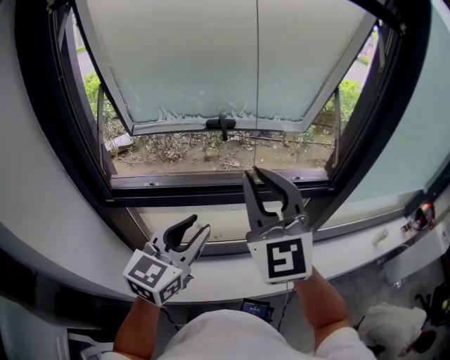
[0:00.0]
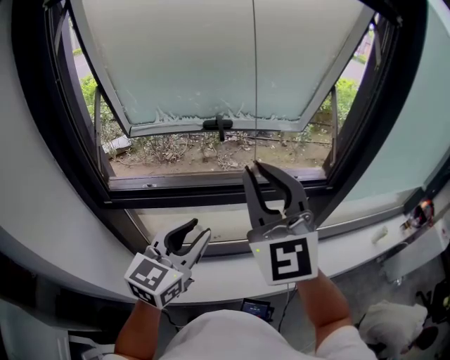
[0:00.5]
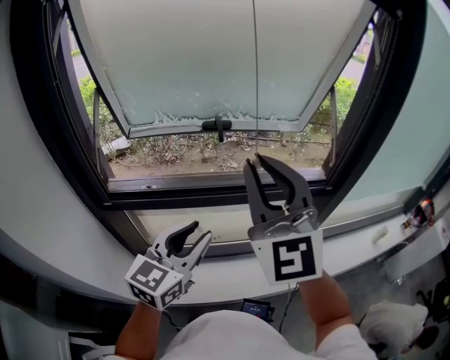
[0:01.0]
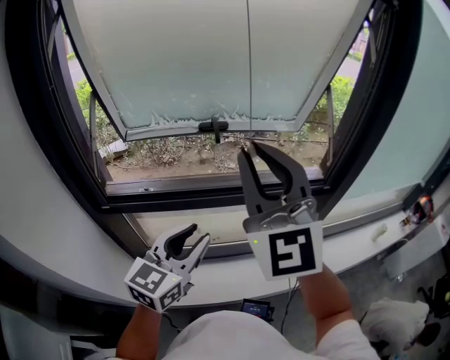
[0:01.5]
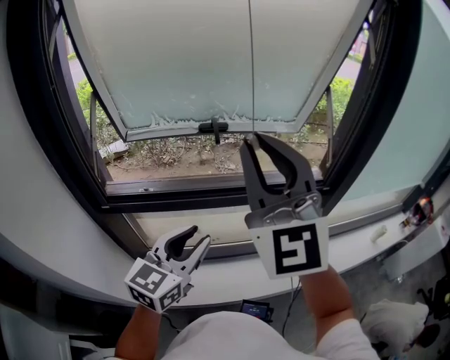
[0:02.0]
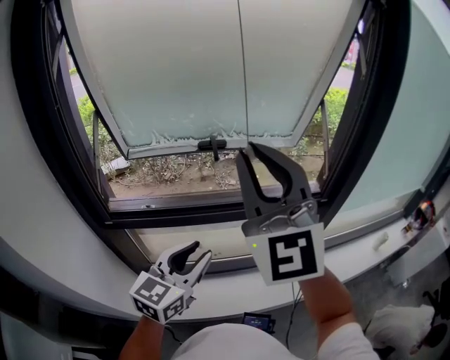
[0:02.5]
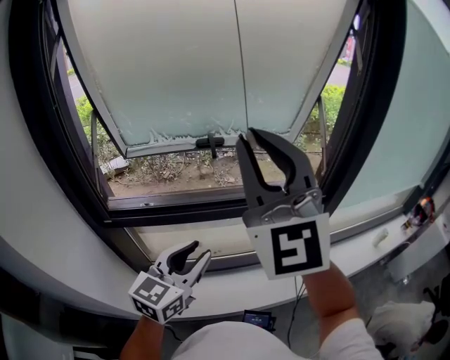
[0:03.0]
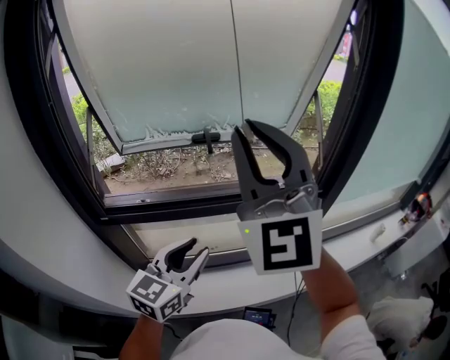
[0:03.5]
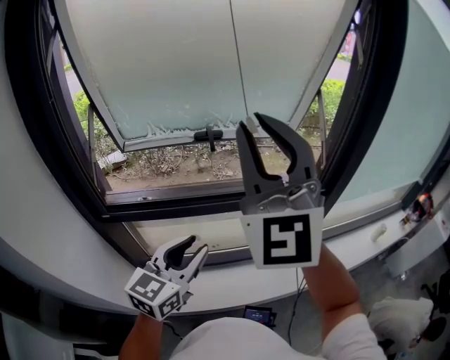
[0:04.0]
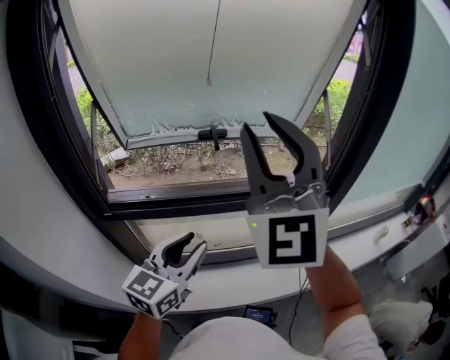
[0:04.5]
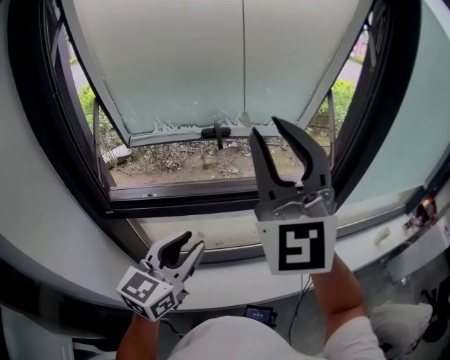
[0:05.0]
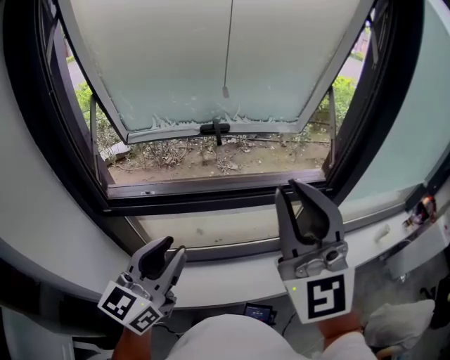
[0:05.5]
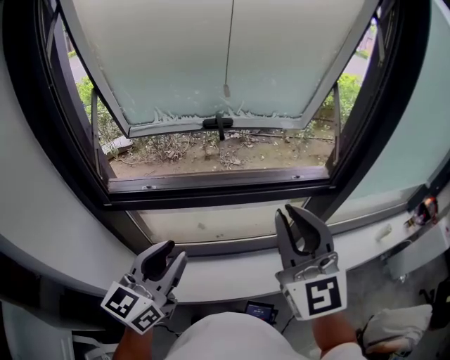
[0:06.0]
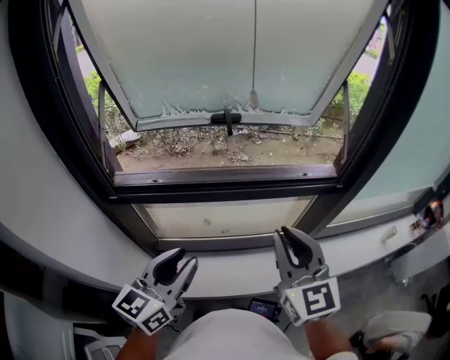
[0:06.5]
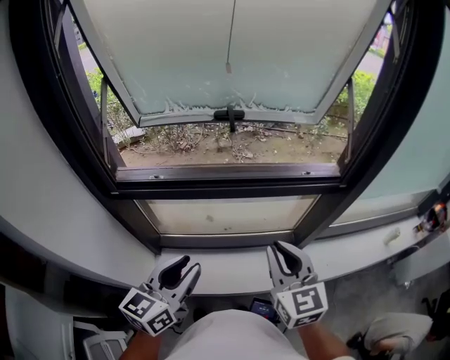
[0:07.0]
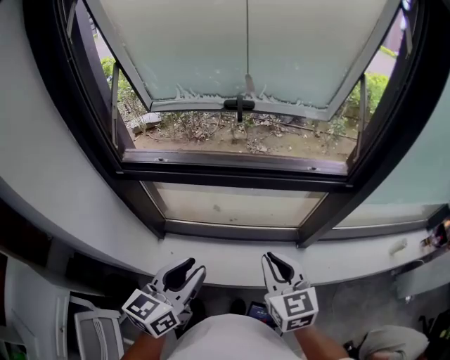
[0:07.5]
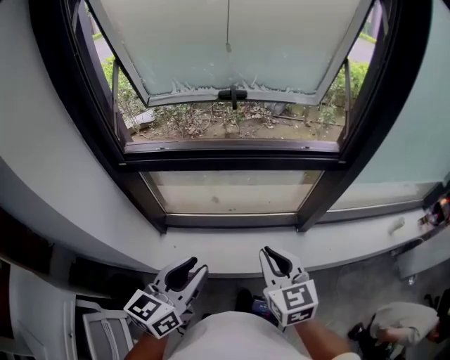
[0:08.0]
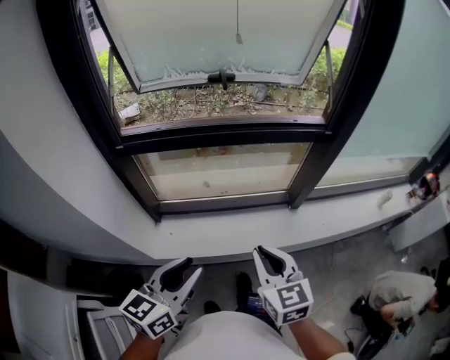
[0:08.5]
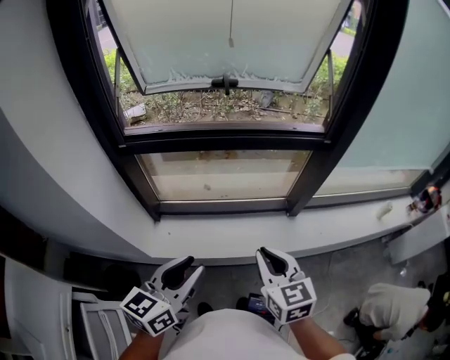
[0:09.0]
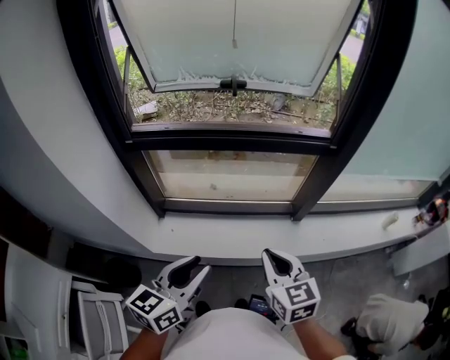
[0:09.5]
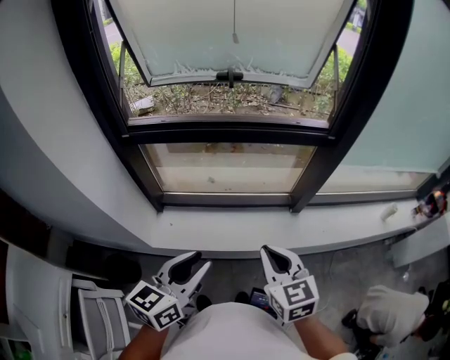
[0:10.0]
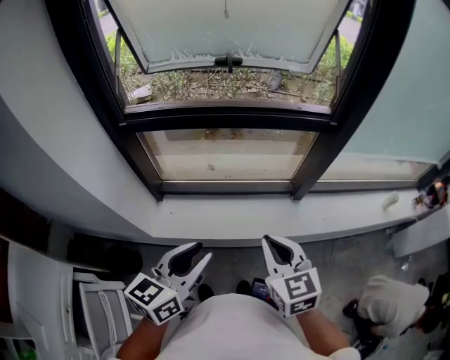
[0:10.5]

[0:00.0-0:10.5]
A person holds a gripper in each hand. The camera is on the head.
0:00.0 to 0:02.0: The right gripper moves upward, roughly 10 cm.
0:02.0 to 0:04.0: There are only small adjustments of the grippers.
0:04.0 to 0:06.5: The right gripper travels downward by roughly 25 cm, and changes its angle by about 40 degrees. Meanwhile the left gripper changes place by some 5 cm.
0:06.5 to 0:08.5: The left gripper travels backward by some 20 cm. The right gripper travels backward and downward by some 25 cm, and turns by roughly 20 degrees.
0:08.5 to 0:10.5: Both grippers travel together to the right, approximately 5 cm.

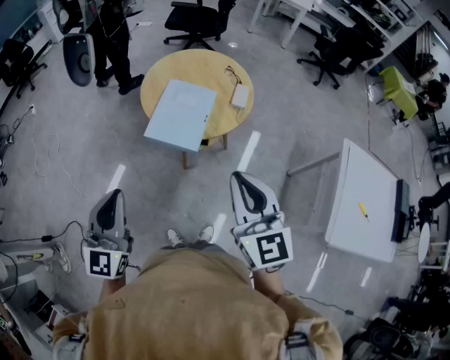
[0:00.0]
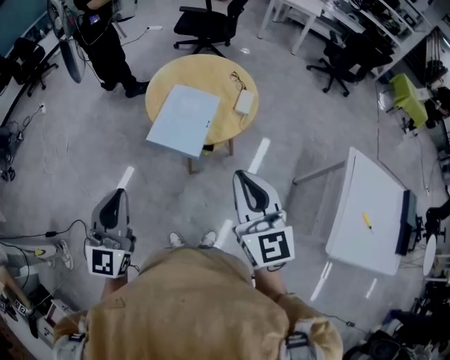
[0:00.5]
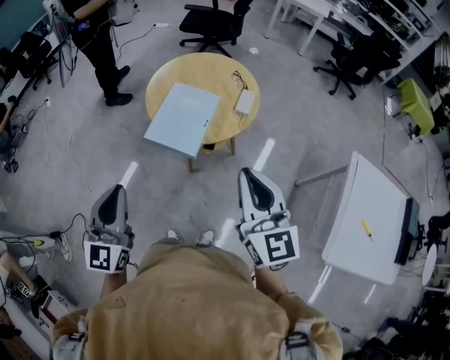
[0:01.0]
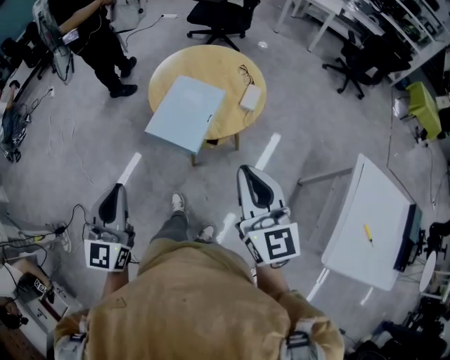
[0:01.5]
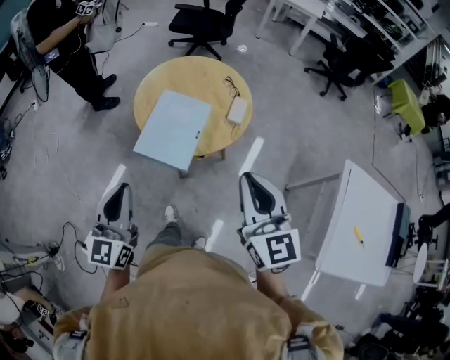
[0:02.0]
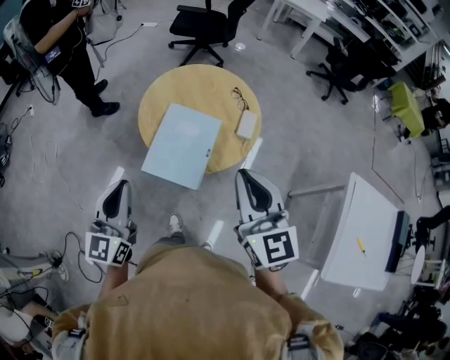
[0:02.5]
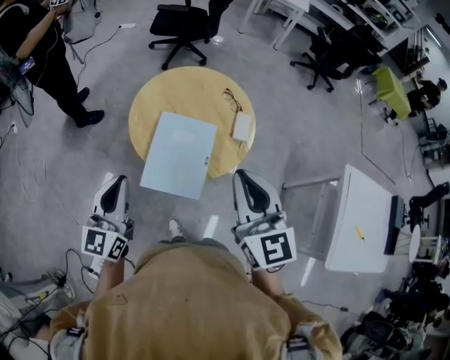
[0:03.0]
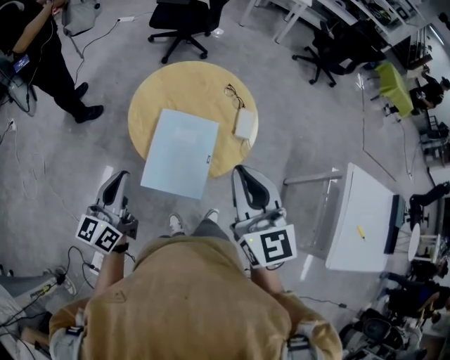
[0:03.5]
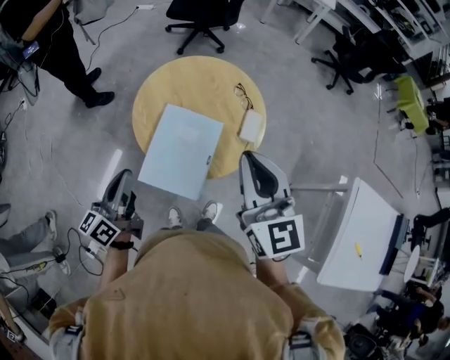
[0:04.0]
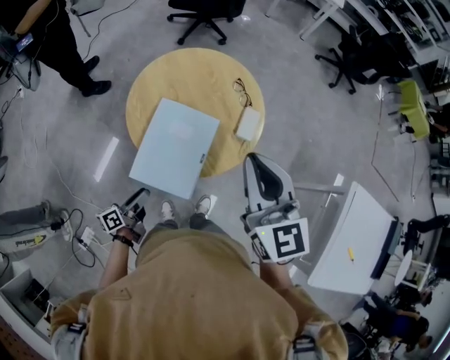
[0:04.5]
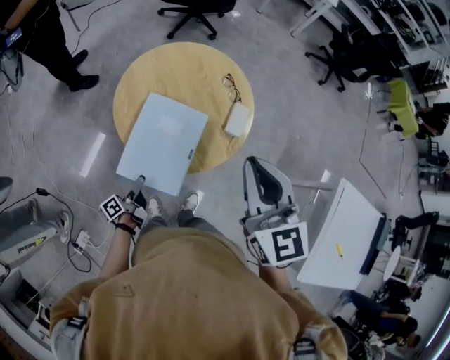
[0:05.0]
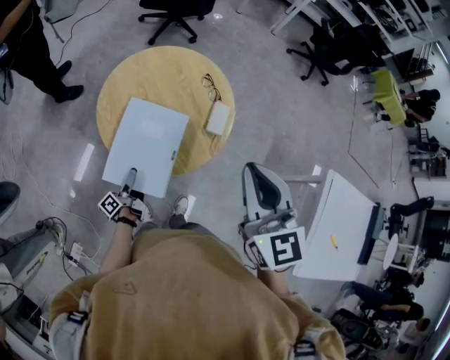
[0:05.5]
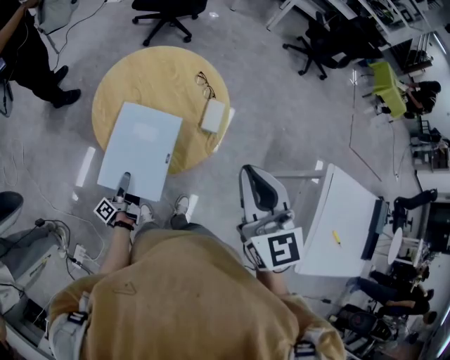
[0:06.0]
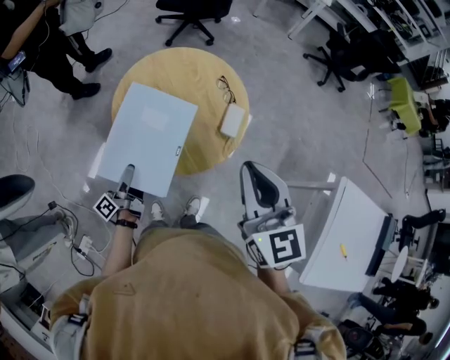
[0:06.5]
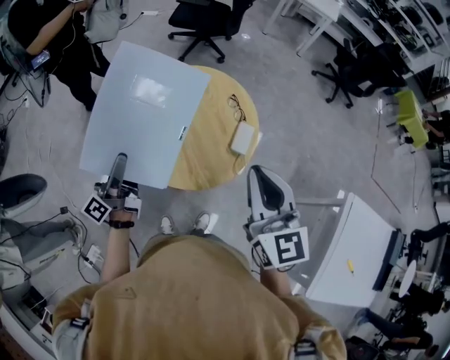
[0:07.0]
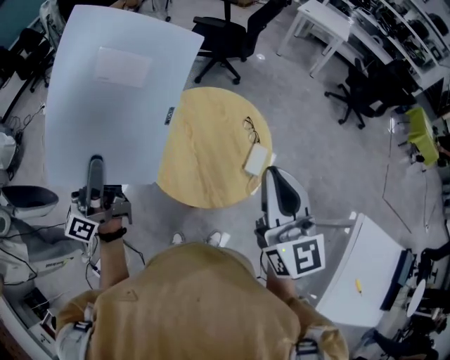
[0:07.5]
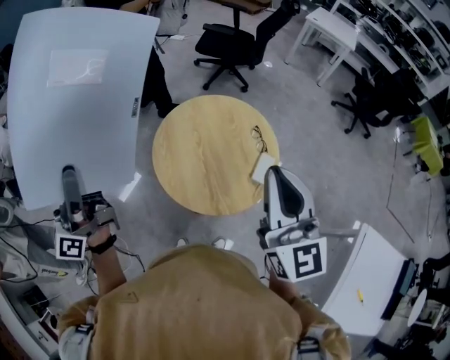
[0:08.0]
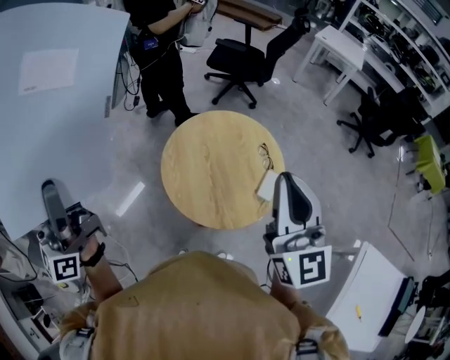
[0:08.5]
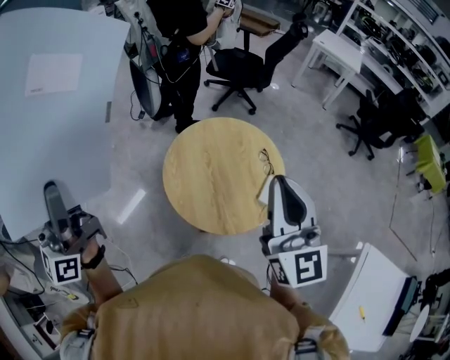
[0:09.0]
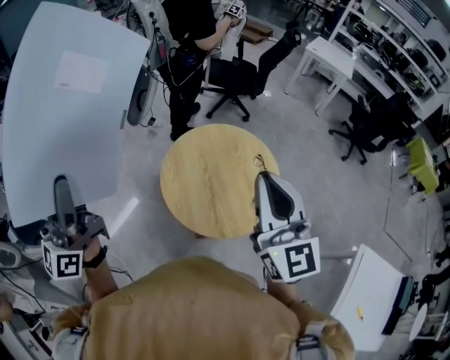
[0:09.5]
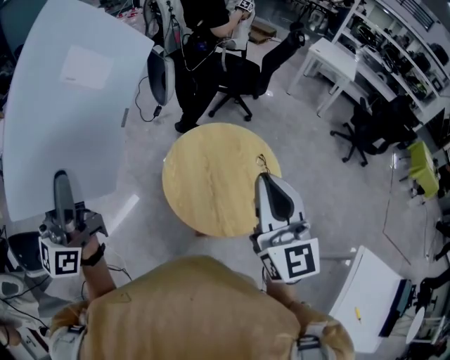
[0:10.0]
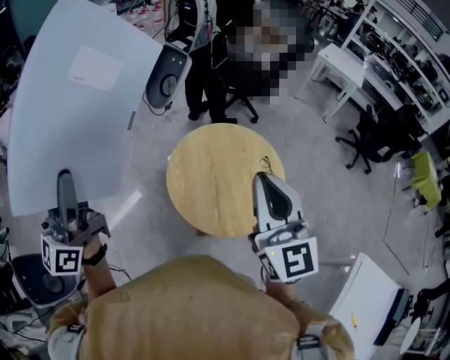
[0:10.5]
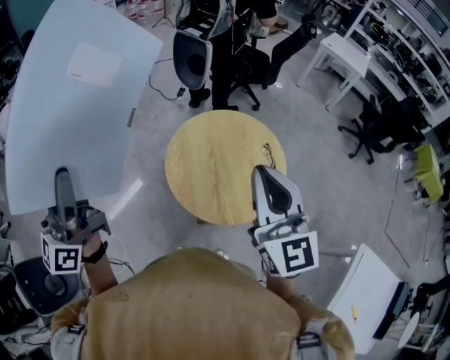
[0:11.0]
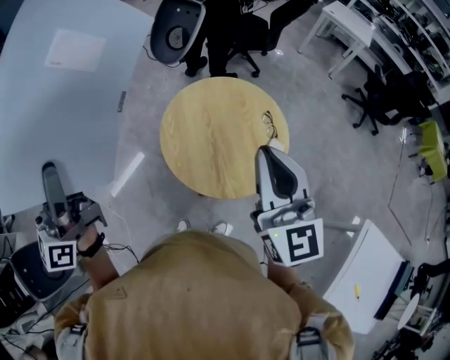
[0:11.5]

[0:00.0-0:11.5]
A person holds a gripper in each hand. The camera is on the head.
0:00.0 to 0:02.0: The right gripper shifts roughly 15 cm to the right and forward; the left gripper goes some 15 cm forward and to the right.
0:02.0 to 0:04.0: Both grippers move forward, some 20 cm. The left gripper rotates some 40 degrees.
0:04.0 to 0:06.0: The right gripper goes roughly 10 cm to the right. The left gripper is displaced downward by about 30 cm, rotates around the line of its fingers by roughly 40 degrees, counterclockwise from behind, and opens its fingers.
0:06.0 to 0:07.5: The right gripper moves upward, forward and to the left, about 10 cm, and changes its angle by approximately 20 degrees. The left gripper heads upward, covering about 50 cm, and tilts its fingers roughly 40 degrees upward.
0:07.5 to 0:09.5: The left gripper is displaced upward, to the left and backward by about 20 cm, and rotates roughly 40 degrees. The right gripper goes about 10 cm to the left and upward.
0:09.5 to 0:11.5: The right gripper goes approximately 5 cm downward.

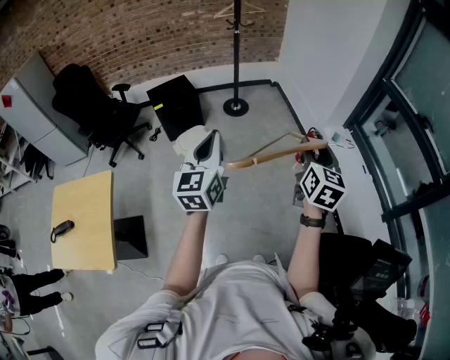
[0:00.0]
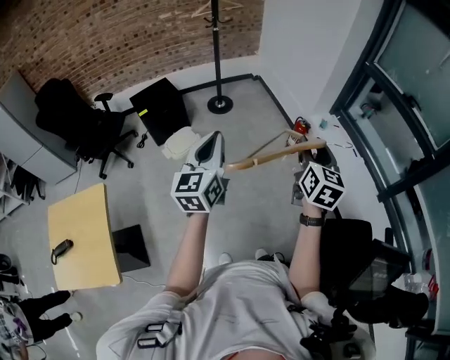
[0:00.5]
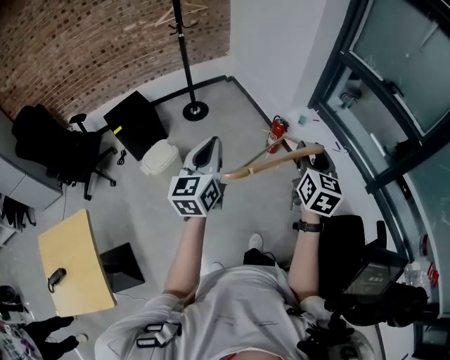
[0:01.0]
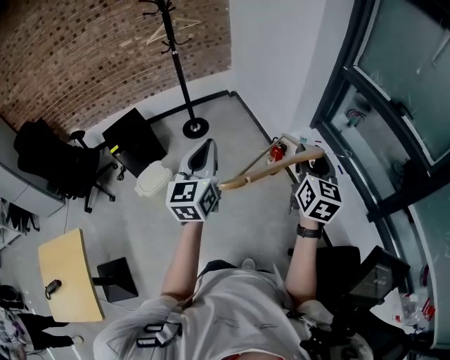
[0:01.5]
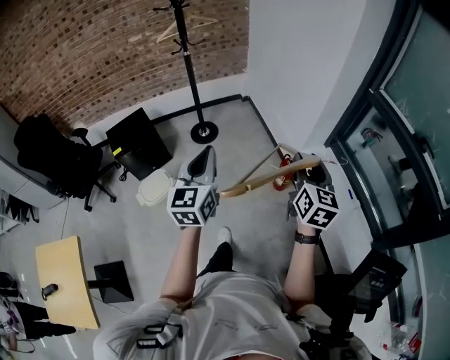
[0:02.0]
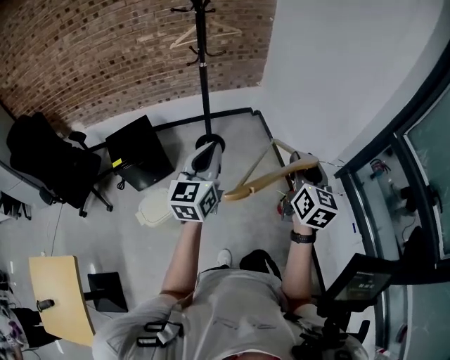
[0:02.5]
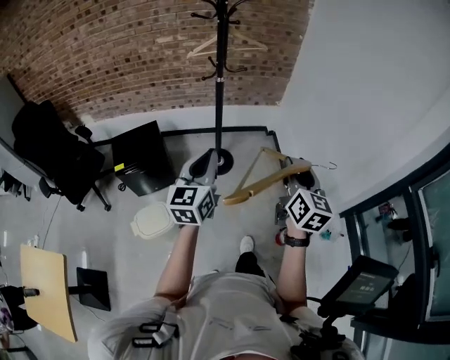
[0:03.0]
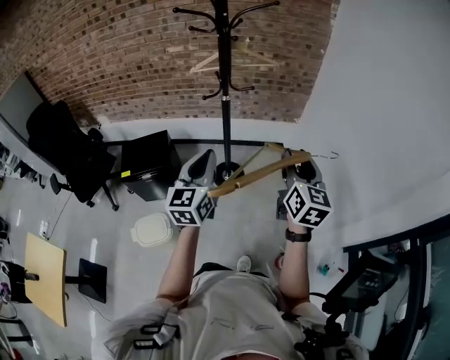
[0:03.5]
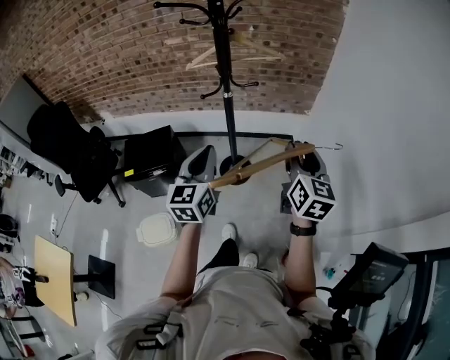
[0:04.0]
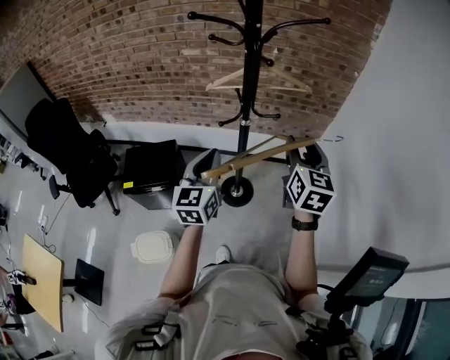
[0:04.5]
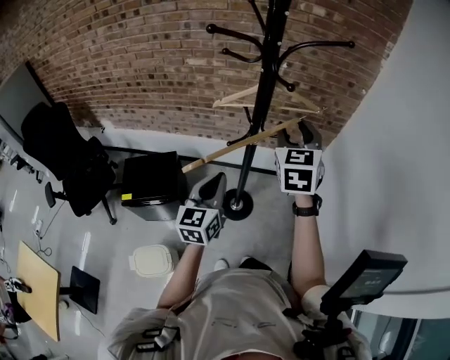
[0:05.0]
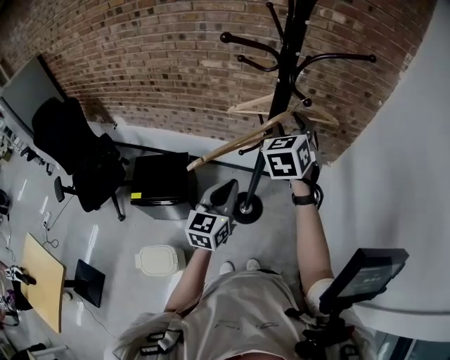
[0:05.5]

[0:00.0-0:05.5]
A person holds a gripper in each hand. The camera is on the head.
0:00.0 to 0:02.0: The left gripper shifts approximately 35 cm forward. The right gripper shifts approximately 35 cm forward and to the right.
0:02.0 to 0:03.5: The pair of grippers is taken forward, about 50 cm. The right gripper rotates roughly 30 degrees.
0:03.5 to 0:05.5: The right gripper travels forward and to the left by some 40 cm, and twists approximately 40 degrees counterclockwise, seen from behind; the left gripper travels forward by approximately 20 cm.
